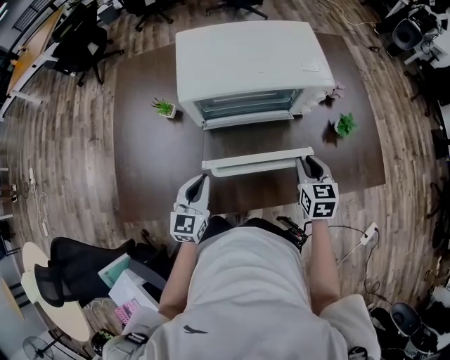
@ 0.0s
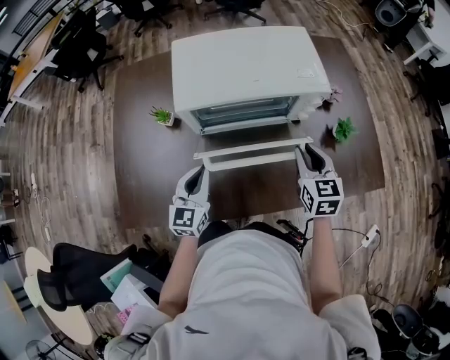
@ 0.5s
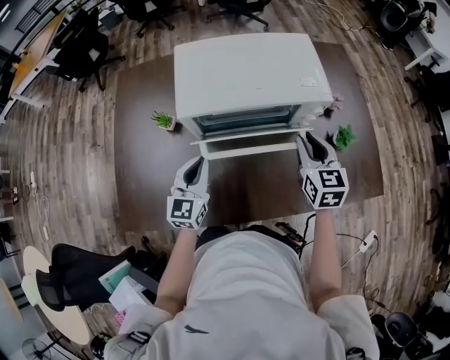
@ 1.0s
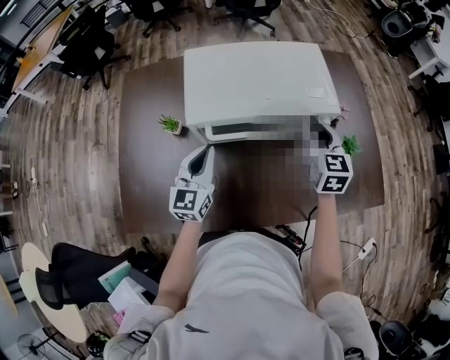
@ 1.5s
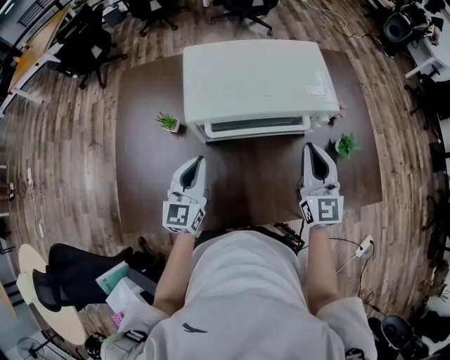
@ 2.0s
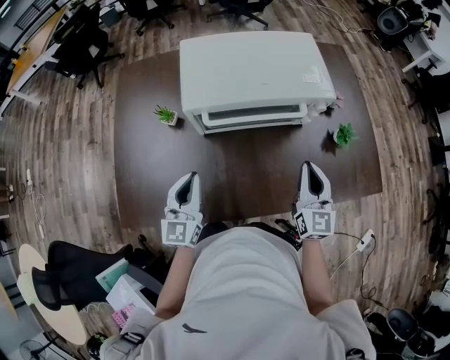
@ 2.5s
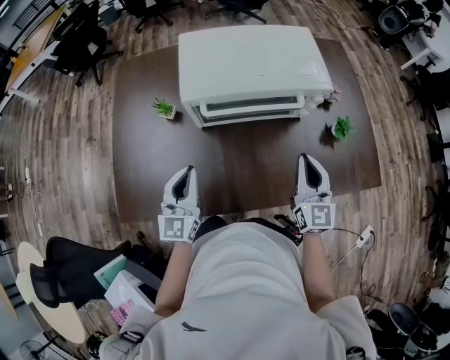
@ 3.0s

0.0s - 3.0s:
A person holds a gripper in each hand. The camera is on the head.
0.0s - 1.5s: The two grippers go approximately 15 cm forward and upward.
1.5s - 3.0s: The two grippers go approximately 15 cm backward.

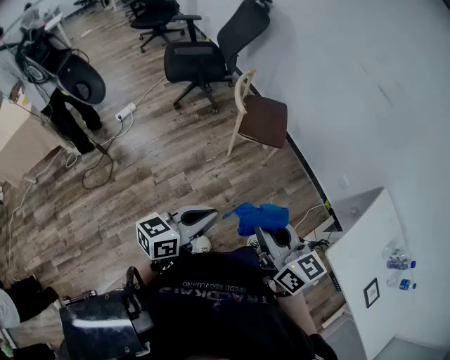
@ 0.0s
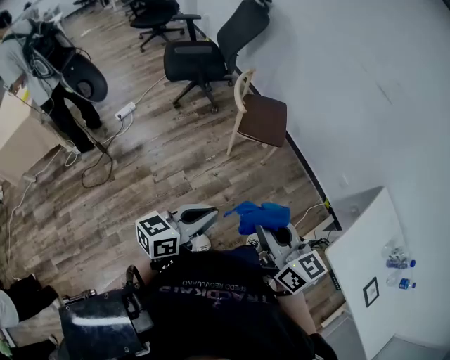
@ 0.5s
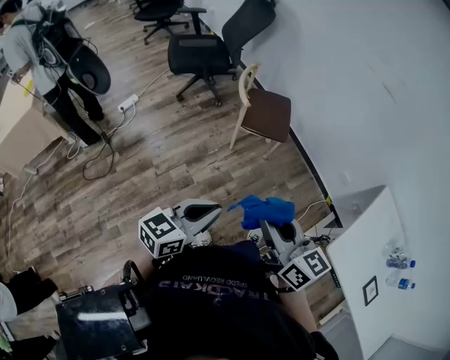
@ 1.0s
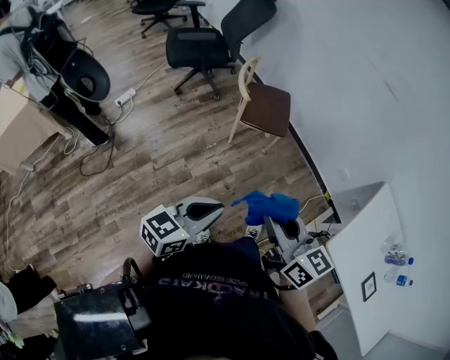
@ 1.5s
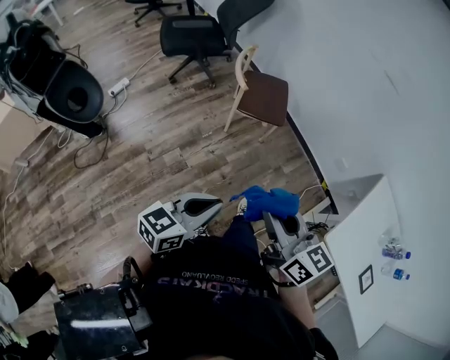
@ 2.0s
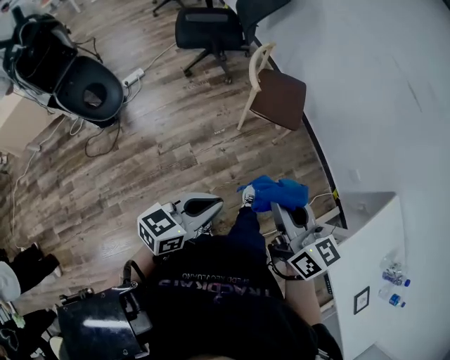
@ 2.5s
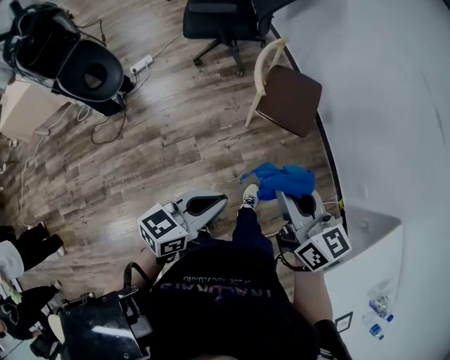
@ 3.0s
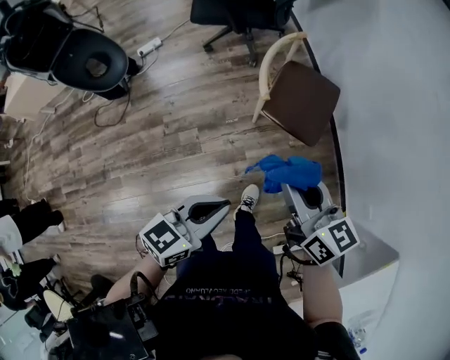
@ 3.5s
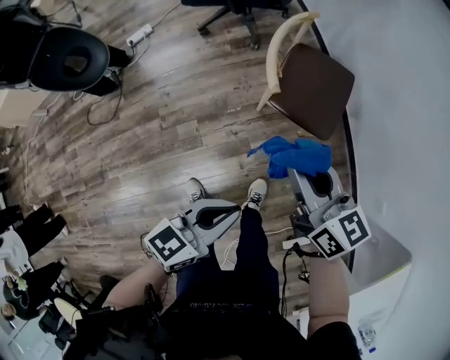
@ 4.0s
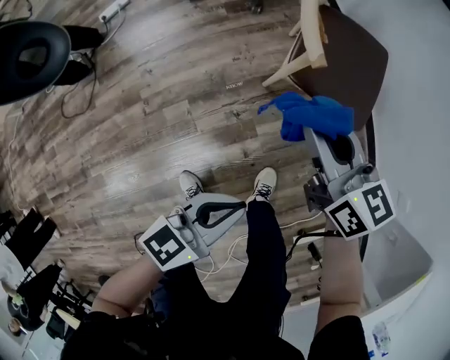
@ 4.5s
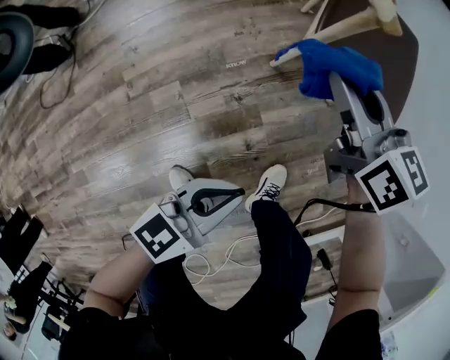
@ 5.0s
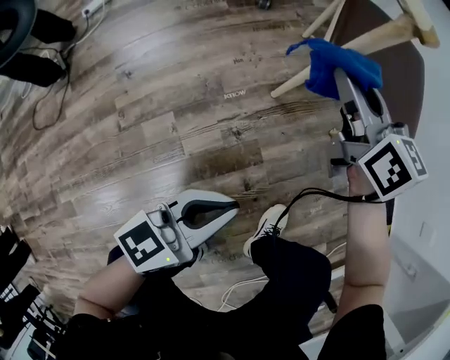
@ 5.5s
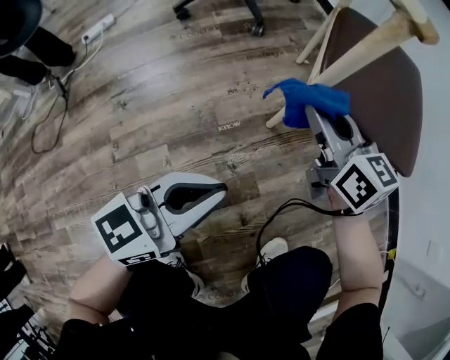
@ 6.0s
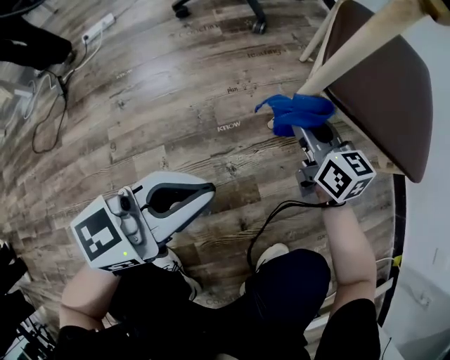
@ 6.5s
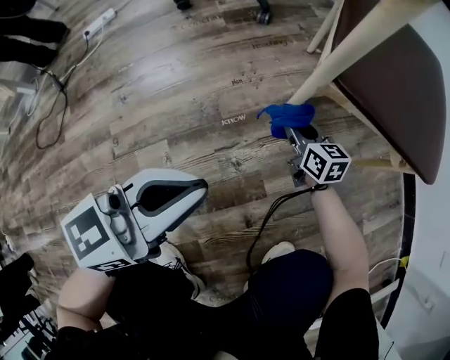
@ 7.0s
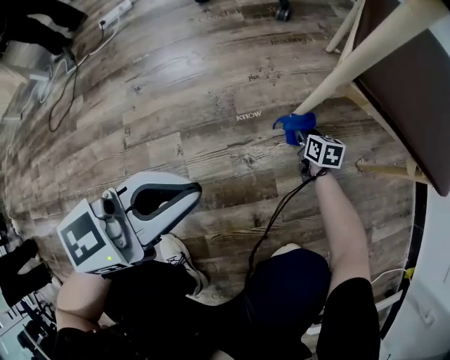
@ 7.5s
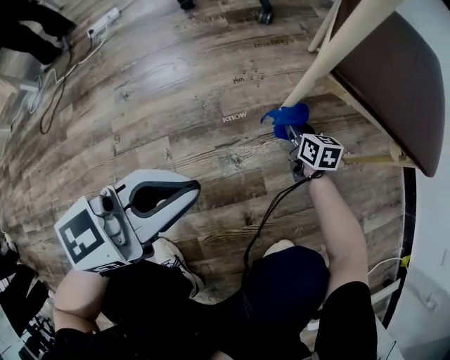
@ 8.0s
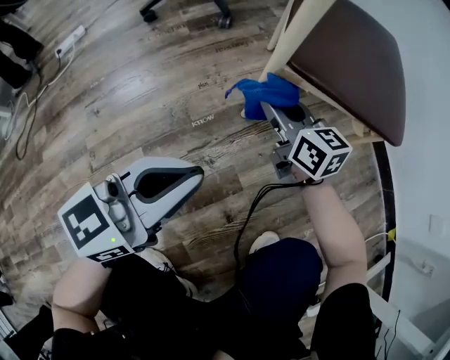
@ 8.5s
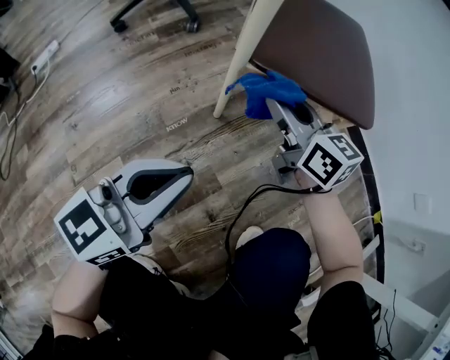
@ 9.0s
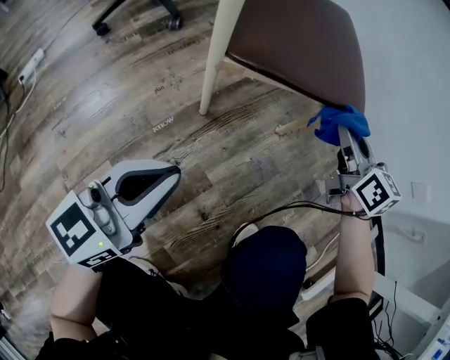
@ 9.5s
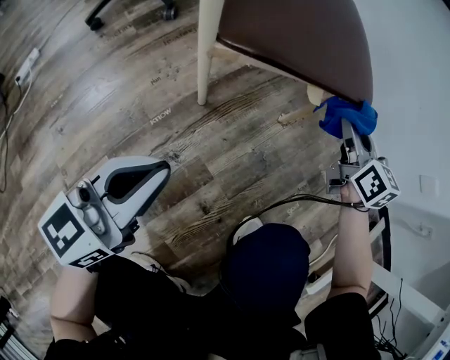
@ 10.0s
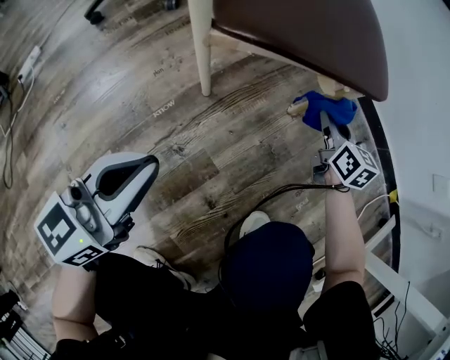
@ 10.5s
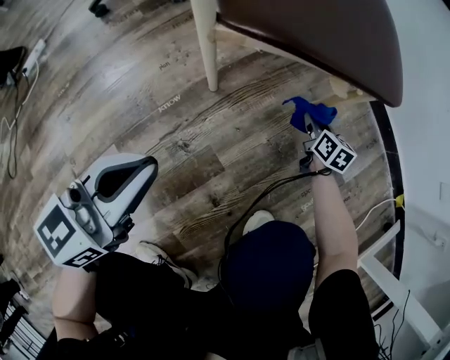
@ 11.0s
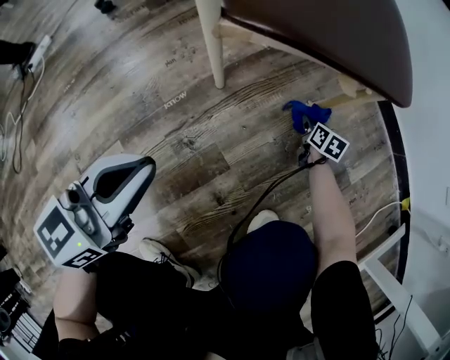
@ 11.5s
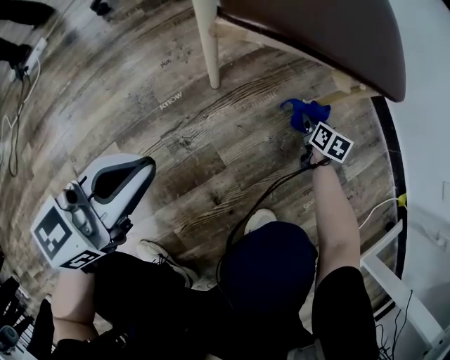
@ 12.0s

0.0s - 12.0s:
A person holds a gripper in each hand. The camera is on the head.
0.0s - 2.0s: The grippers move only a little.
2.0s - 4.0s: Both grippers move forward and downward, roughly 40 cm. The right gripper rotates approximately 20 degrees.
4.0s - 6.0s: The two grippers go approximately 50 cm downward.
6.0s - 8.0s: The right gripper goes roughly 30 cm downward, and changes its angle by approximately 20 degrees.
8.0s - 10.0s: The right gripper shifts about 40 cm to the right and upward, and swivels approximately 40 degrees, while the left gripper is displaced to the right by some 5 cm.
10.0s - 12.0s: The right gripper moves downward, some 30 cm, and swivels about 30 degrees.

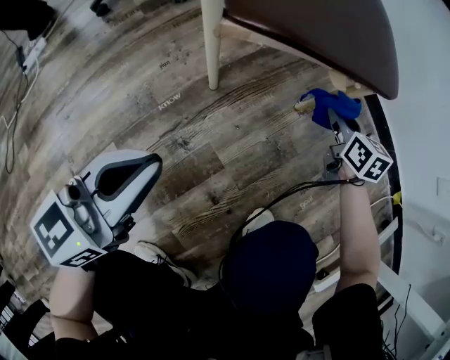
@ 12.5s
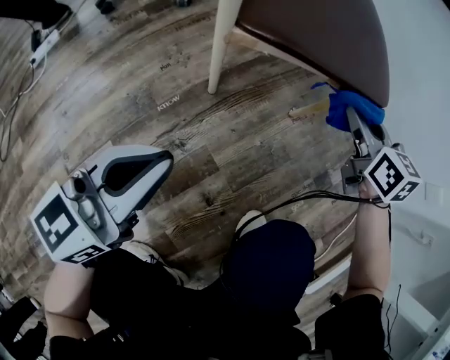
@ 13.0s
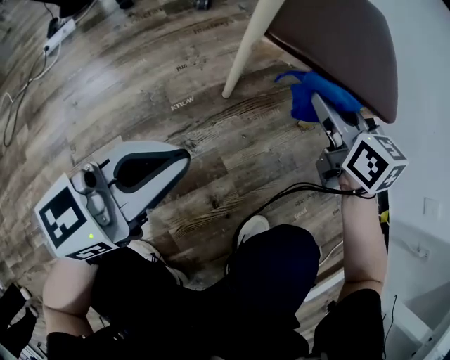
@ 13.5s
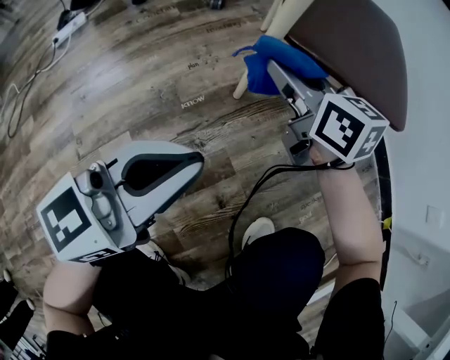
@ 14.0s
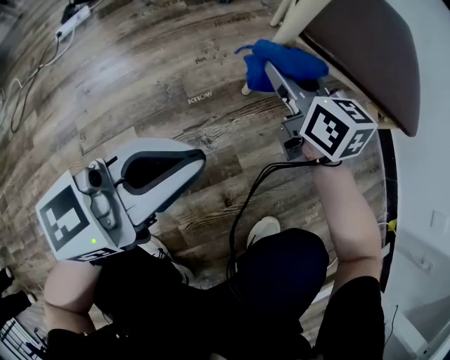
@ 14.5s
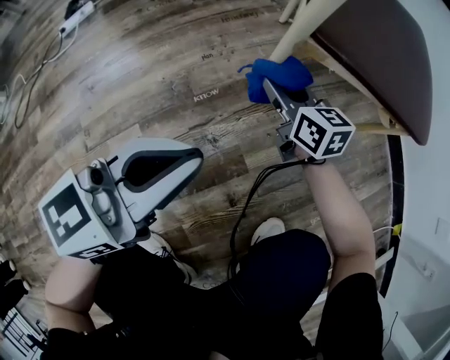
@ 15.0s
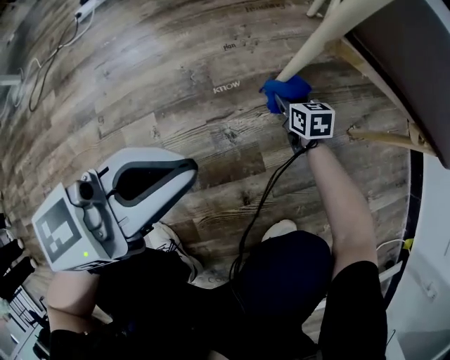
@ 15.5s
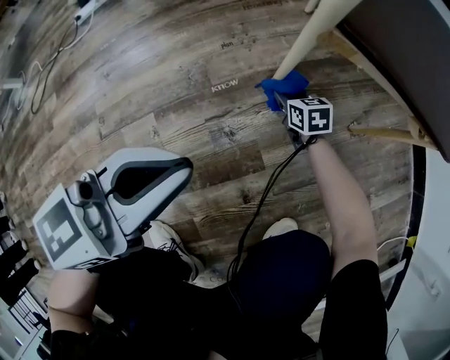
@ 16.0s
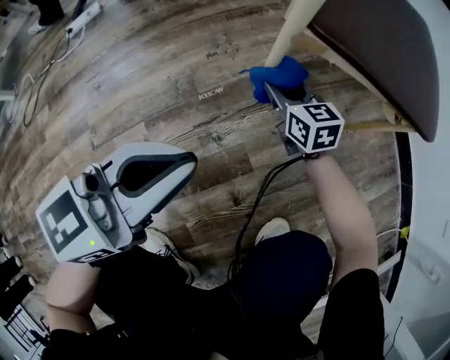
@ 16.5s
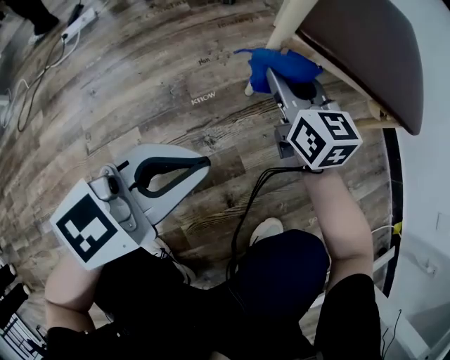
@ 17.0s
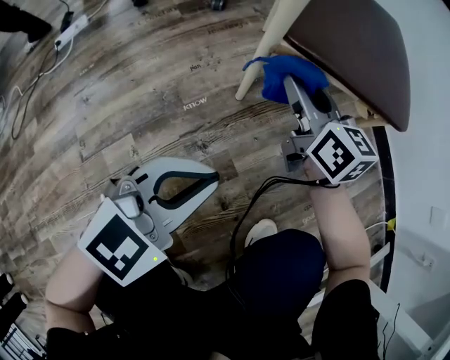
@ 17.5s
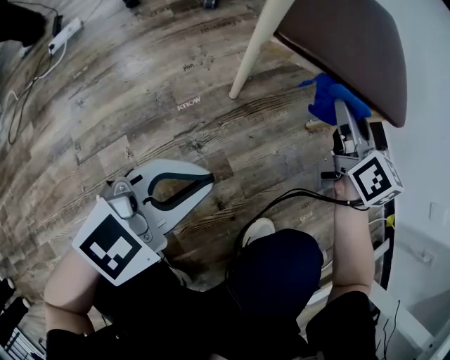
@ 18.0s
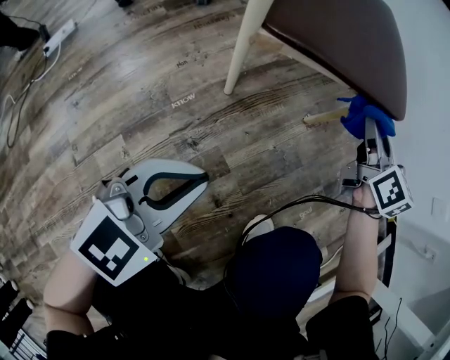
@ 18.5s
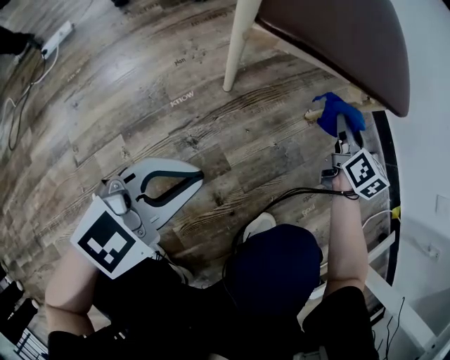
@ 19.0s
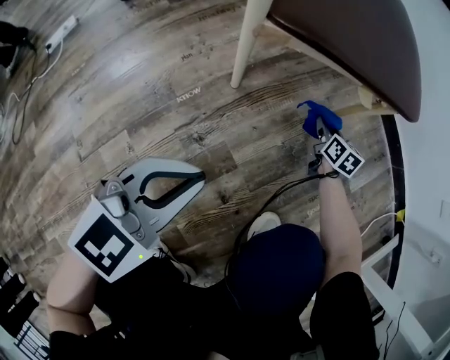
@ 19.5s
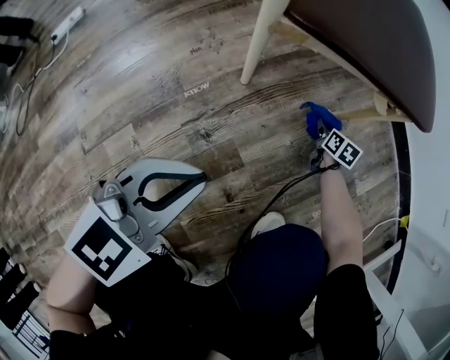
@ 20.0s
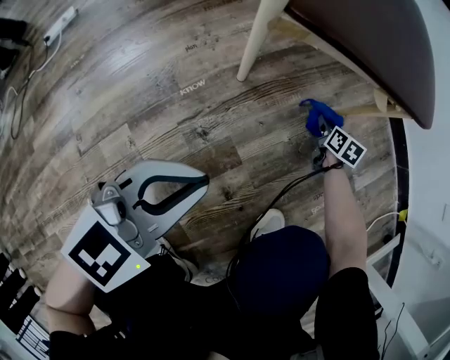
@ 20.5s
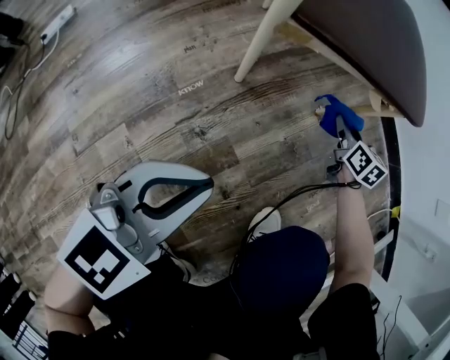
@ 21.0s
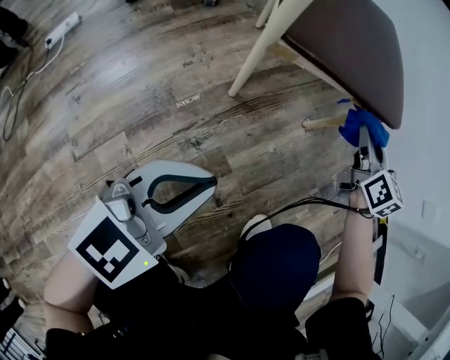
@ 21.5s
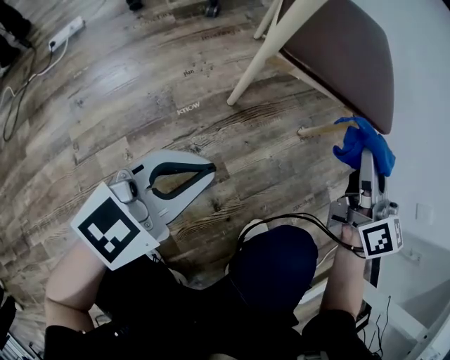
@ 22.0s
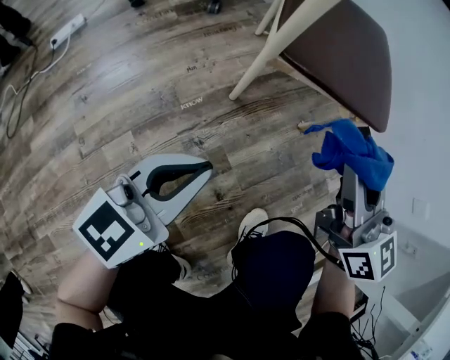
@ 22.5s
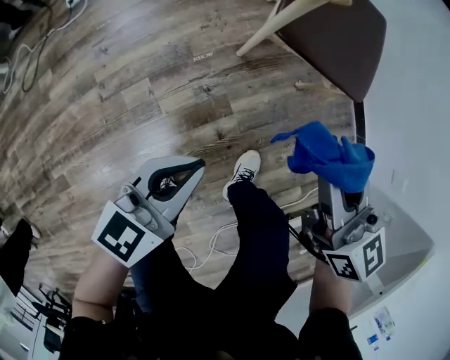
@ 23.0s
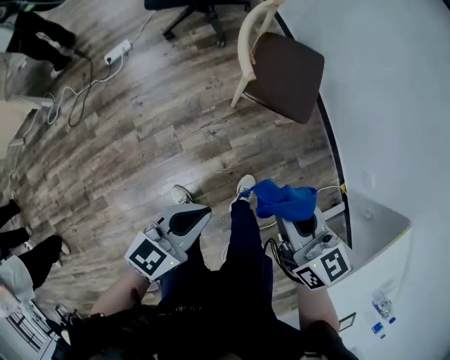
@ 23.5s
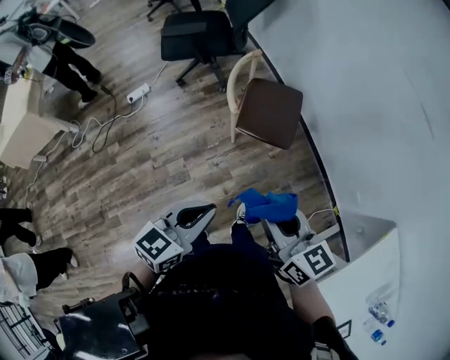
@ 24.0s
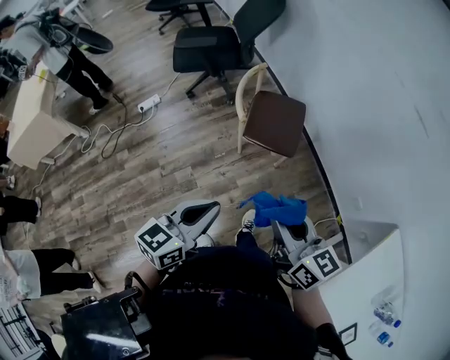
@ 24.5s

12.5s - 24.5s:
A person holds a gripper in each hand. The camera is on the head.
12.5s - 14.5s: The right gripper heads to the left, covering some 30 cm, and swivels approximately 30 degrees.
14.5s - 16.5s: The right gripper shifts roughly 15 cm downward.
16.5s - 18.5s: The right gripper is displaced to the right and upward by approximately 35 cm, and swivels approximately 40 degrees. The left gripper goes approximately 5 cm to the right, and turns by about 30 degrees.
18.5s - 20.5s: The right gripper goes some 35 cm downward, and tips its fingers downward by some 30 degrees.
20.5s - 22.5s: The left gripper moves upward, some 10 cm, and swivels approximately 30 degrees. Meanwhile the right gripper is displaced upward by some 50 cm, and angles its fingers upward, by some 40 degrees.
22.5s - 24.5s: The left gripper travels upward by approximately 60 cm; the right gripper goes approximately 60 cm upward and backward, and changes its angle by roughly 20 degrees.
